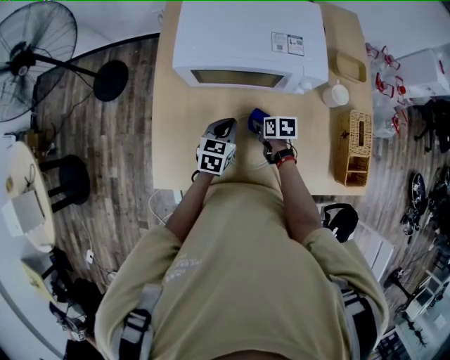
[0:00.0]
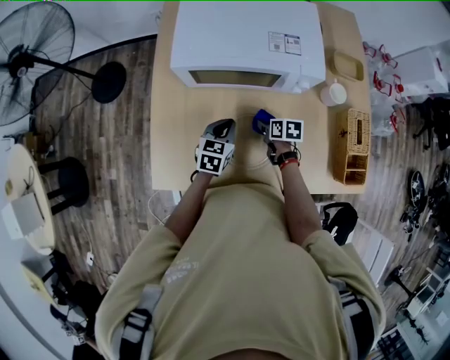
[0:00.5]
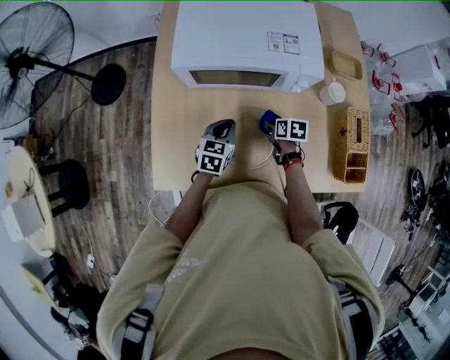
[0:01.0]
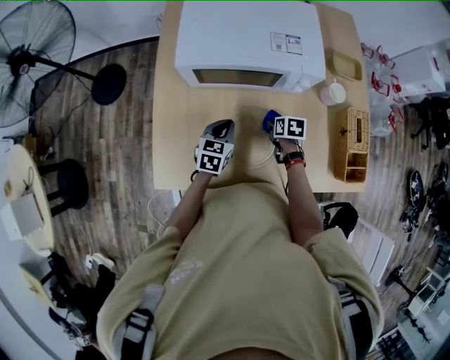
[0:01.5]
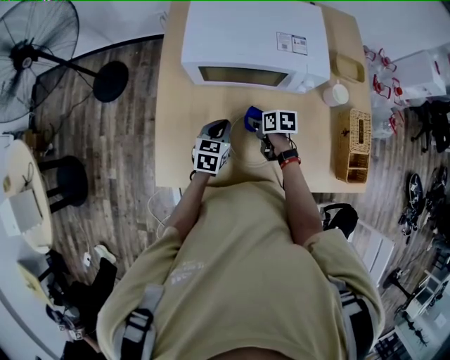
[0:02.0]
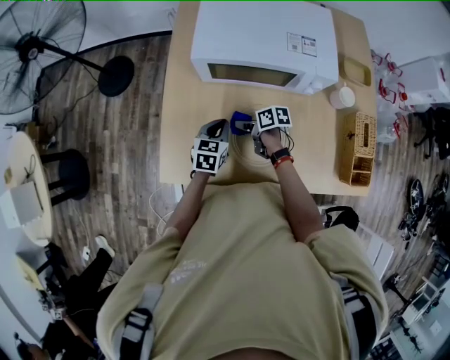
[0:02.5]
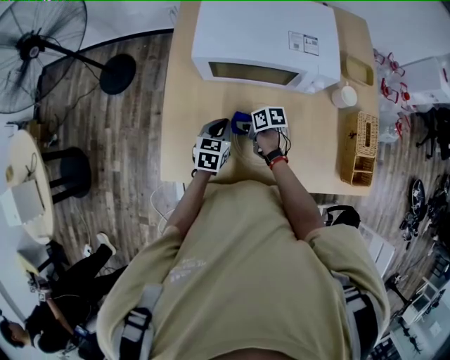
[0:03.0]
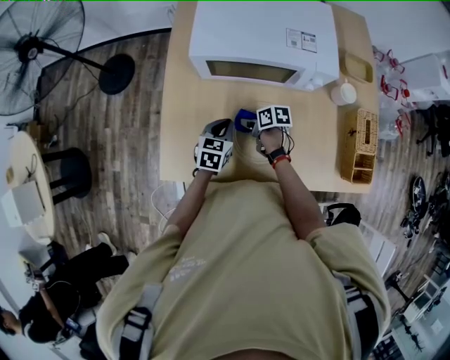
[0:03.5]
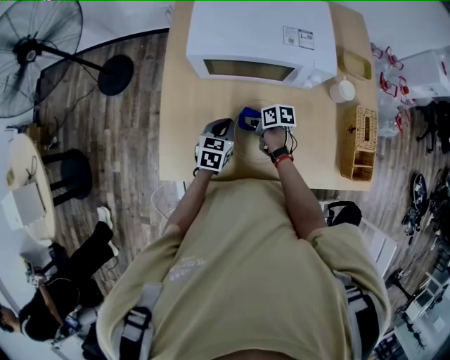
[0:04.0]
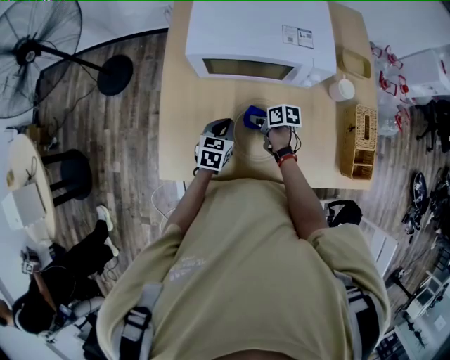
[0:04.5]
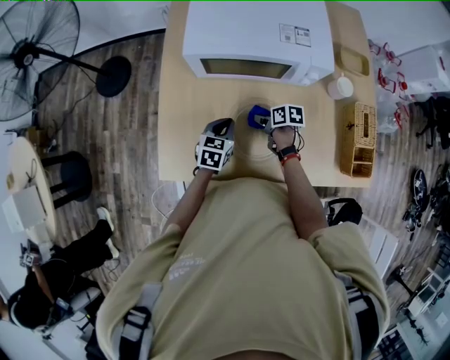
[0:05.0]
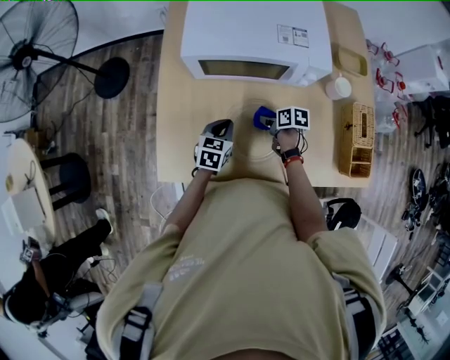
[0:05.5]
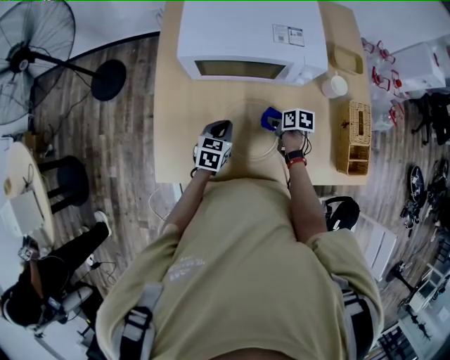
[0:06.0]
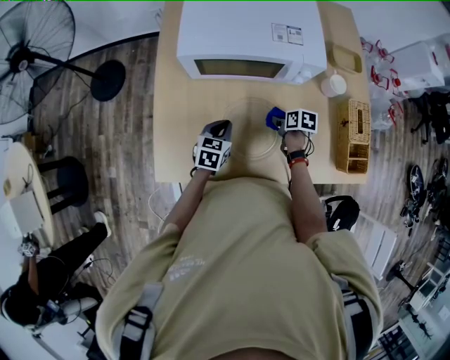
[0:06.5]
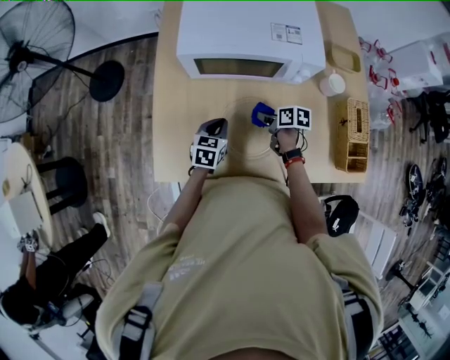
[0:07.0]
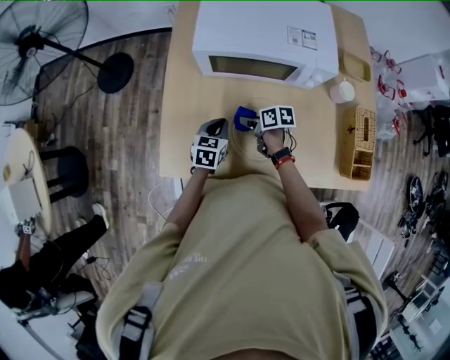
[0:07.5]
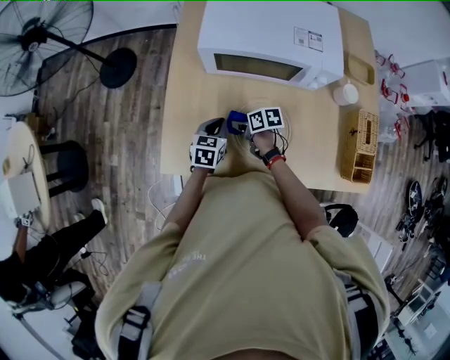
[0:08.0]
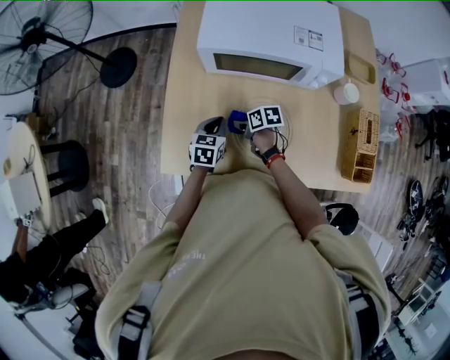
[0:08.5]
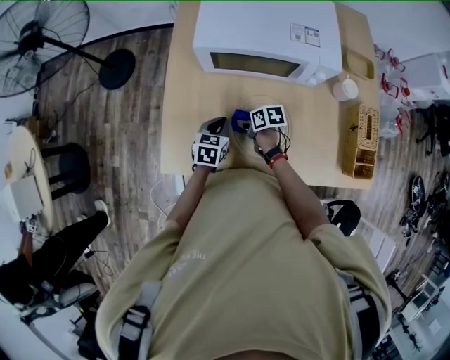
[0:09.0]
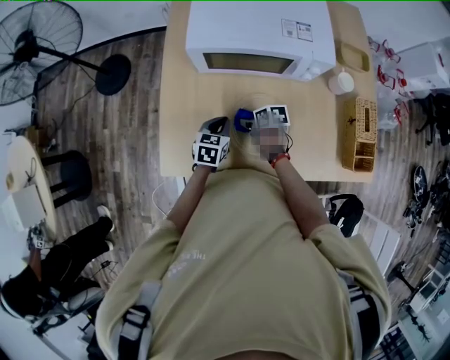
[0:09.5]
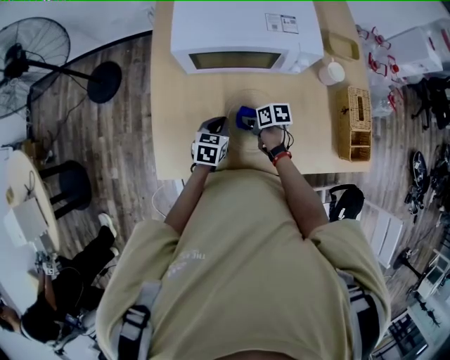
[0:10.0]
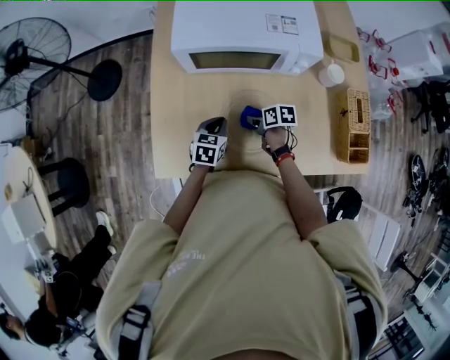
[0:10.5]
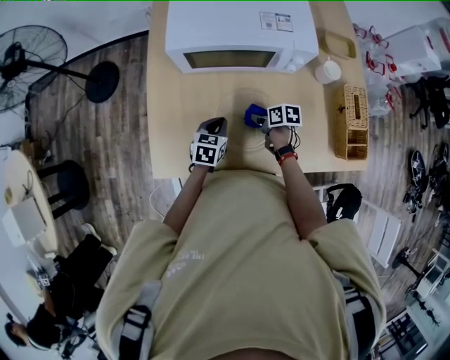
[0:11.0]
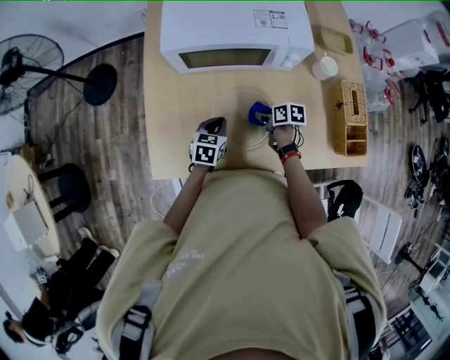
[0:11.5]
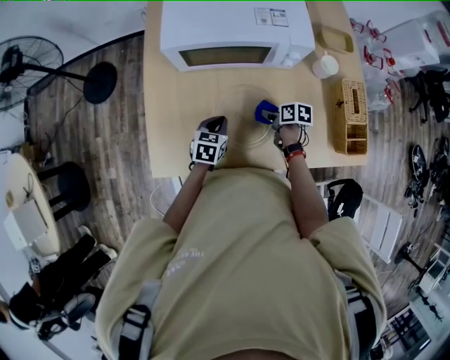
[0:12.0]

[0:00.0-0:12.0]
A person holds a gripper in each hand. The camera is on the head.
0:04.0 to 0:06.0: The right gripper heads to the right, covering approximately 10 cm.
0:06.0 to 0:08.0: The right gripper travels to the left by roughly 20 cm, and rotates about 20 degrees; the left gripper goes roughly 5 cm to the left.
0:08.0 to 0:10.0: The left gripper changes place by approximately 5 cm. Meanwhile the right gripper goes some 10 cm to the right.
0:10.0 to 0:12.0: The right gripper heads to the right, covering some 10 cm.

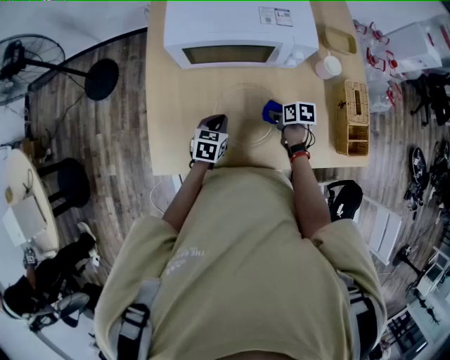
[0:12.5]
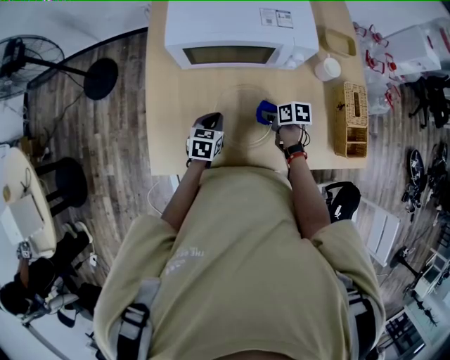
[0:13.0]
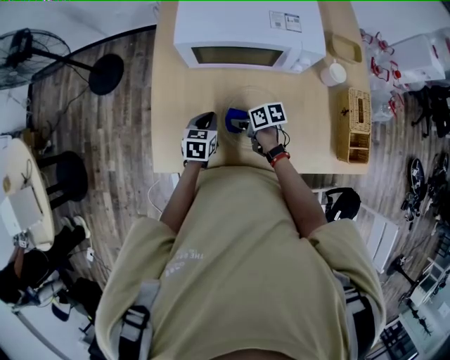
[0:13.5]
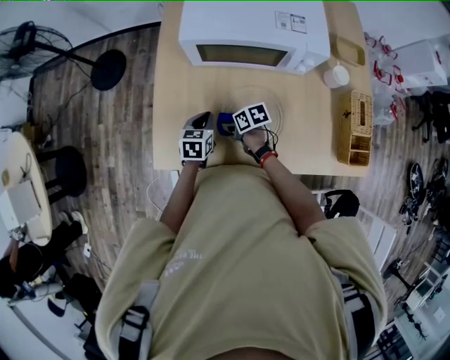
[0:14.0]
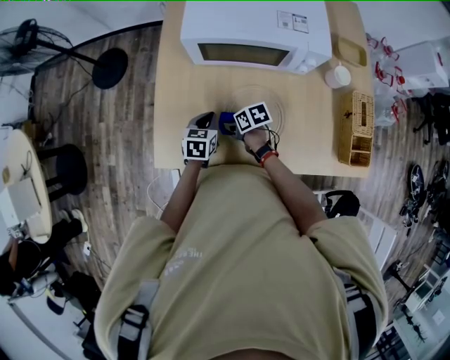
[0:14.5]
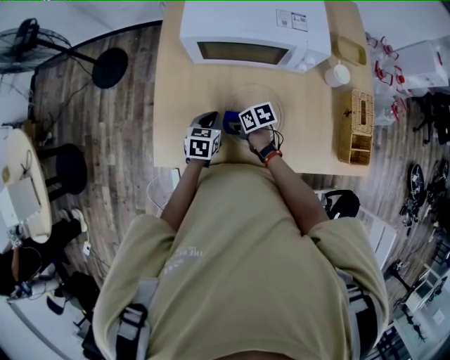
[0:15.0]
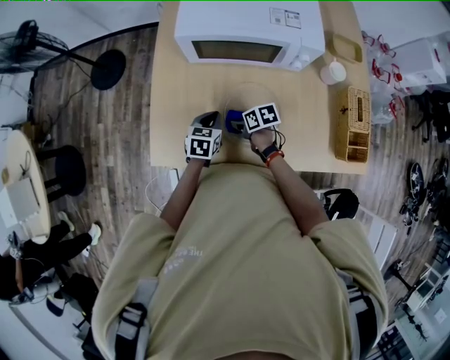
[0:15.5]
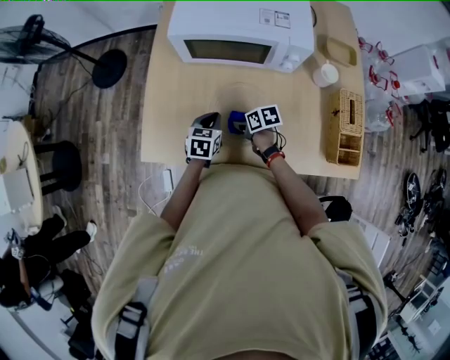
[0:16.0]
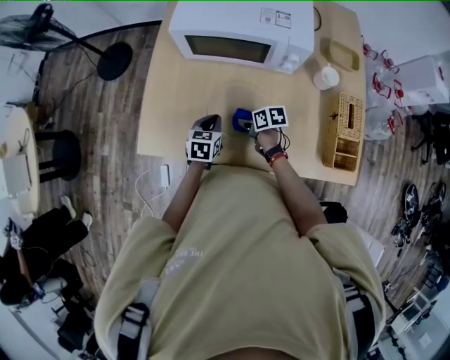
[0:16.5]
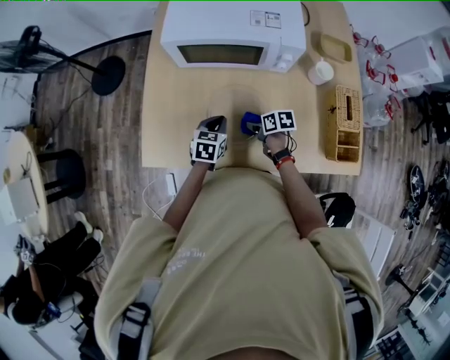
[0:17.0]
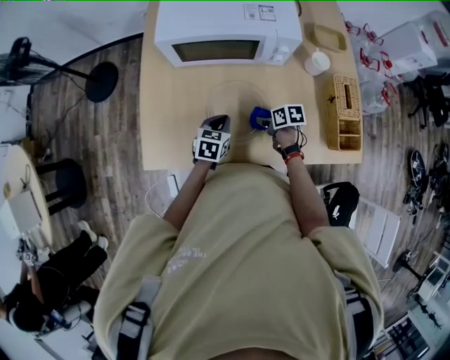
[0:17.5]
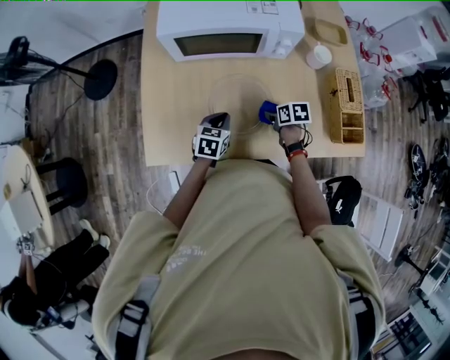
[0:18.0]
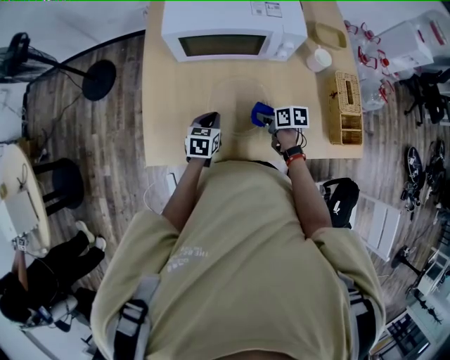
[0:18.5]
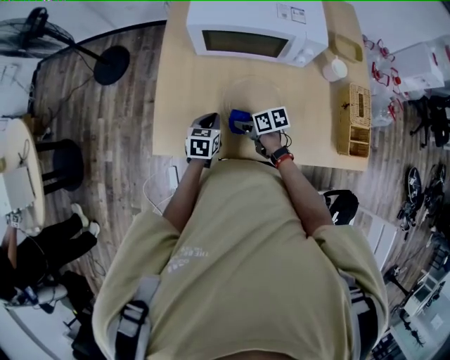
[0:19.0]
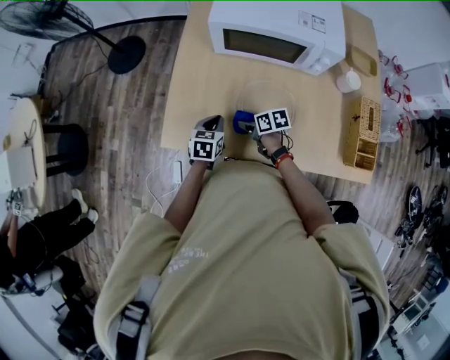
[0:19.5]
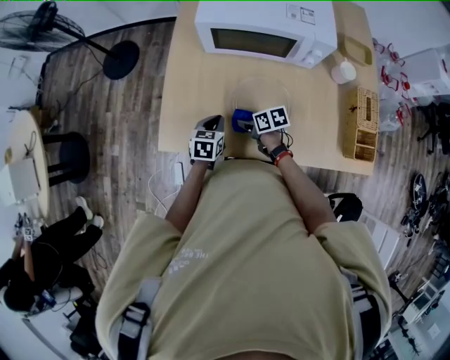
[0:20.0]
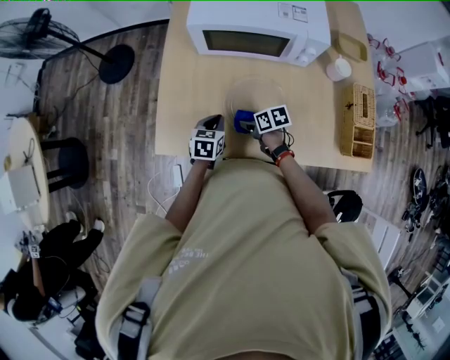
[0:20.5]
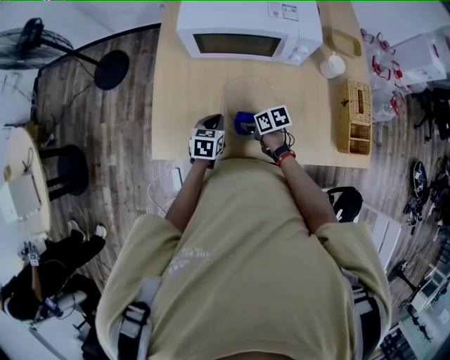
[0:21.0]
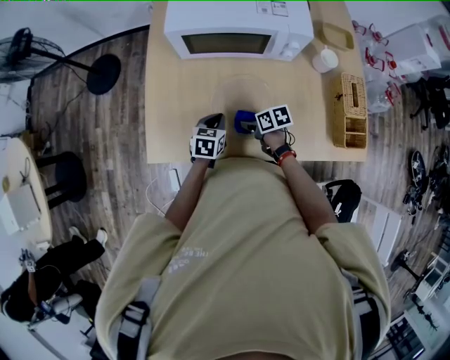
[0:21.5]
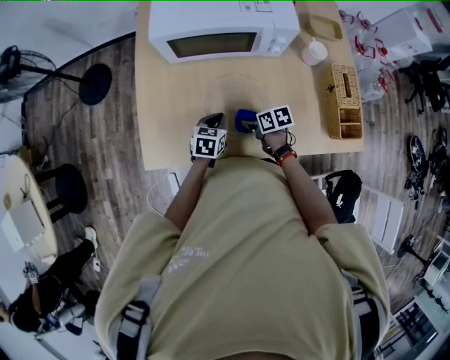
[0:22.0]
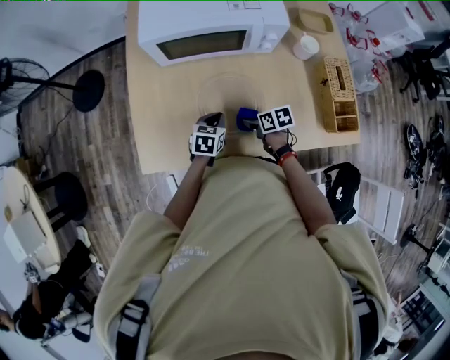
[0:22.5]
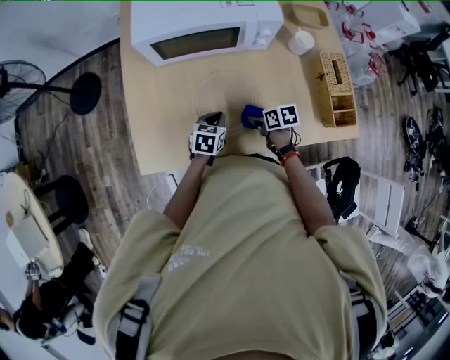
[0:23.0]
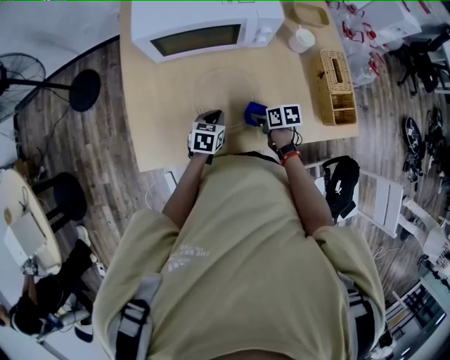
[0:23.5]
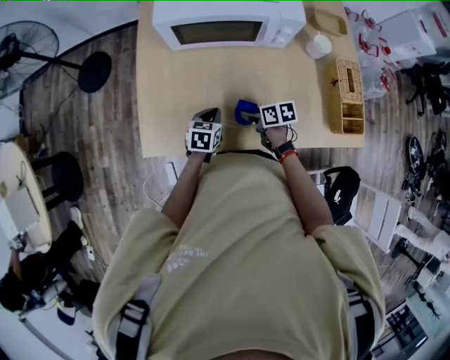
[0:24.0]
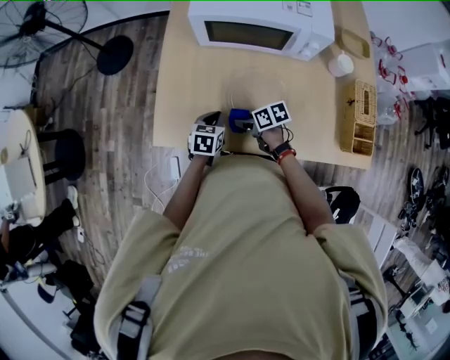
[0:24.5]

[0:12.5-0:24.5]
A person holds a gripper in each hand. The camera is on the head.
0:12.5 to 0:14.5: The right gripper moves to the left, approximately 20 cm, and turns by roughly 30 degrees. Meanwhile the left gripper heads to the left, covering approximately 5 cm.
0:14.5 to 0:16.5: The left gripper is displaced backward and to the right by roughly 10 cm. The right gripper heads to the right and backward, covering about 15 cm.
0:18.5 to 0:20.5: The right gripper shifts roughly 15 cm to the left, and changes its angle by roughly 20 degrees.
0:20.5 to 0:22.5: Both grippers travel together to the right, some 10 cm.
0:22.5 to 0:24.5: The left gripper changes place by some 10 cm, while the right gripper ends up approximately 15 cm from where it was.

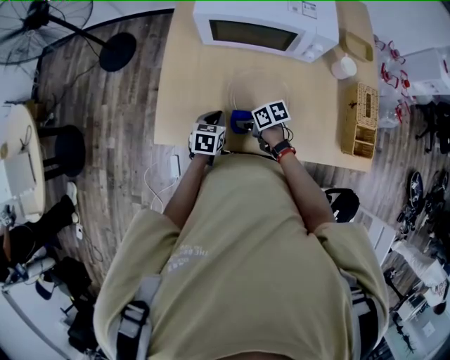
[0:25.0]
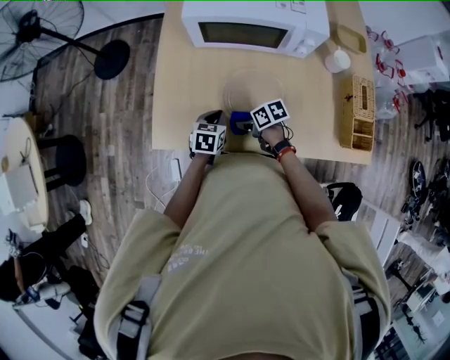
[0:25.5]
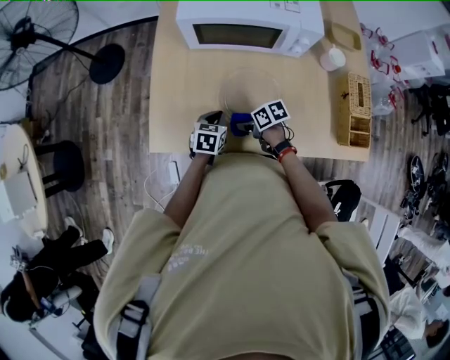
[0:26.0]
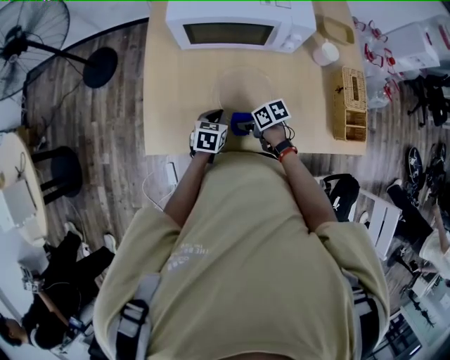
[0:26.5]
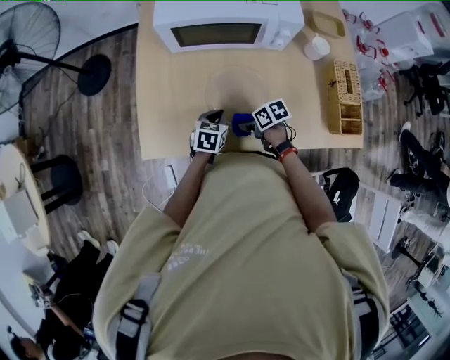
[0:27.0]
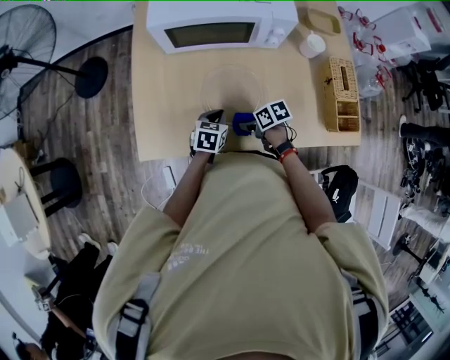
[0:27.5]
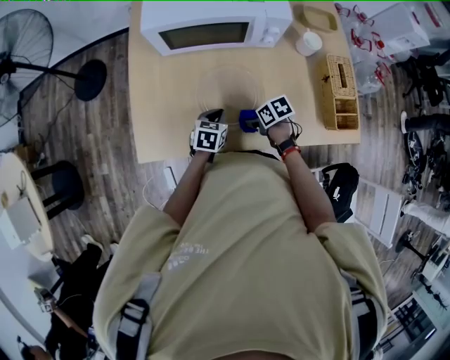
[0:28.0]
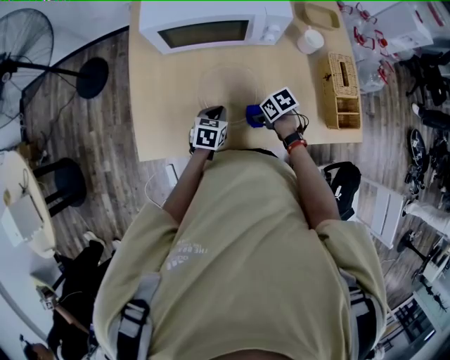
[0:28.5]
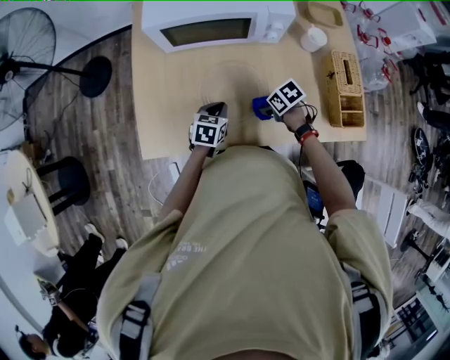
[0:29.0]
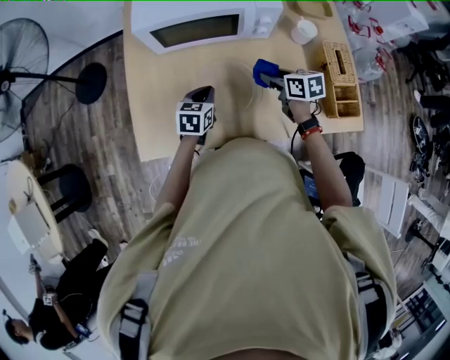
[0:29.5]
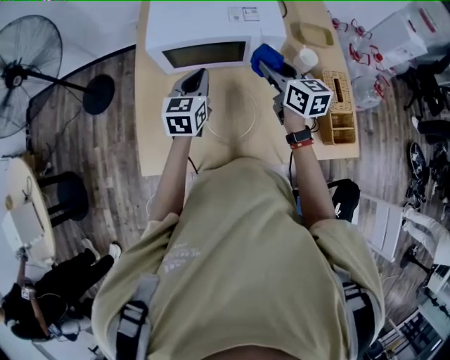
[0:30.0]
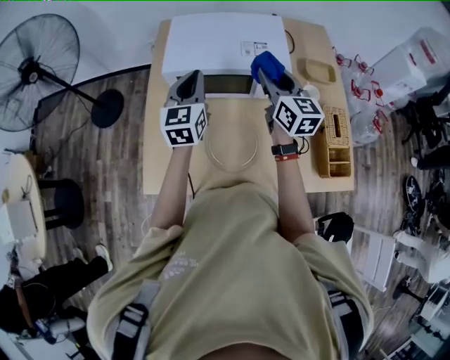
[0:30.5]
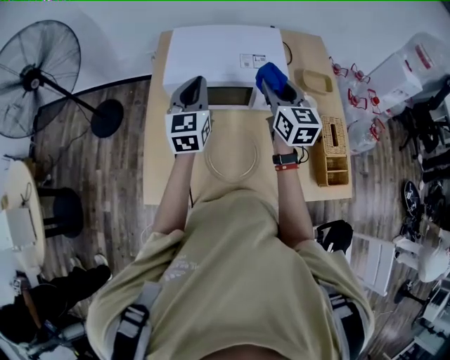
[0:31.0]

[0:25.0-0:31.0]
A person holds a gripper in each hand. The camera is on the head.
0:25.0 to 0:27.0: The two grippers go roughly 5 cm to the right.
0:27.0 to 0:29.0: The right gripper ends up approximately 10 cm from where it was.
0:29.0 to 0:31.0: Both grippers move upward, about 35 cm. The left gripper tilts its fingers roughly 40 degrees upward; the right gripper tips its fingers upward by some 50 degrees.
